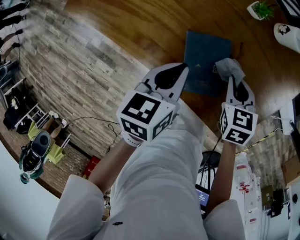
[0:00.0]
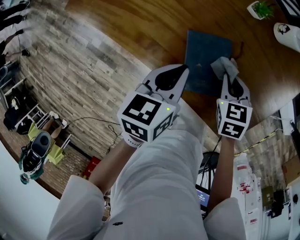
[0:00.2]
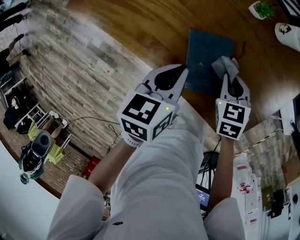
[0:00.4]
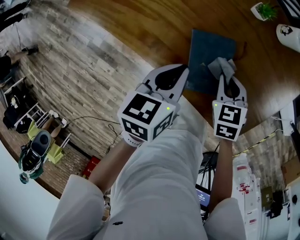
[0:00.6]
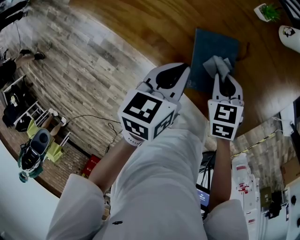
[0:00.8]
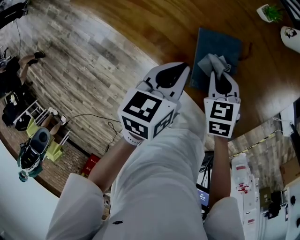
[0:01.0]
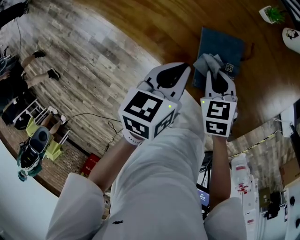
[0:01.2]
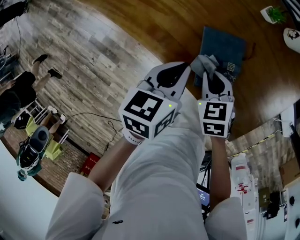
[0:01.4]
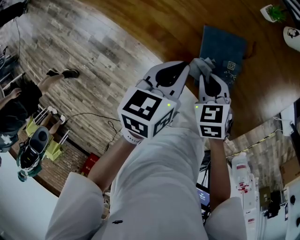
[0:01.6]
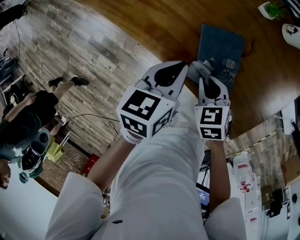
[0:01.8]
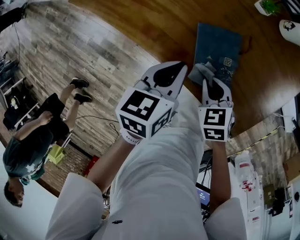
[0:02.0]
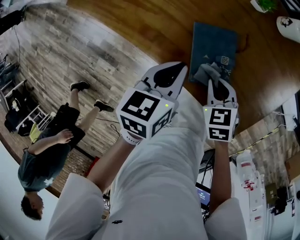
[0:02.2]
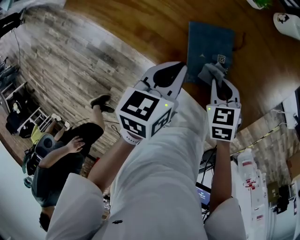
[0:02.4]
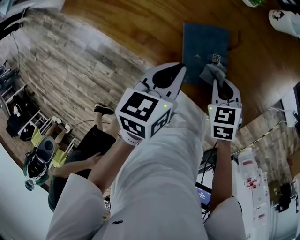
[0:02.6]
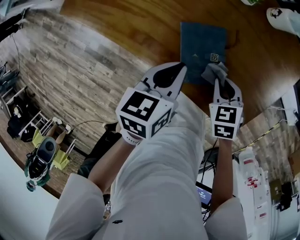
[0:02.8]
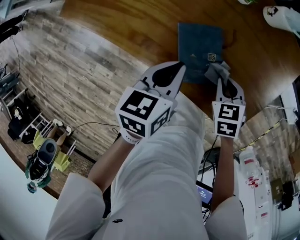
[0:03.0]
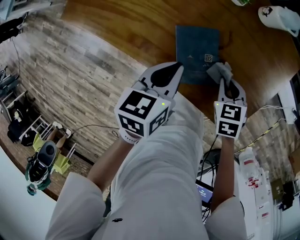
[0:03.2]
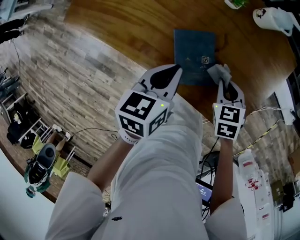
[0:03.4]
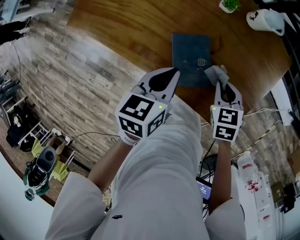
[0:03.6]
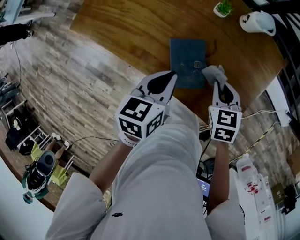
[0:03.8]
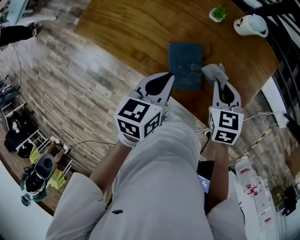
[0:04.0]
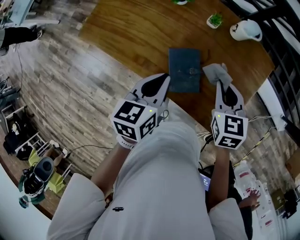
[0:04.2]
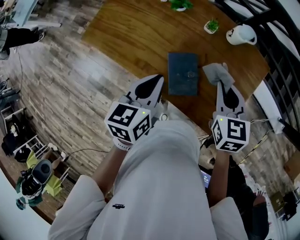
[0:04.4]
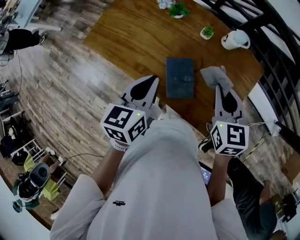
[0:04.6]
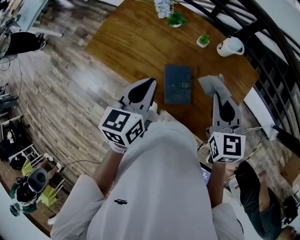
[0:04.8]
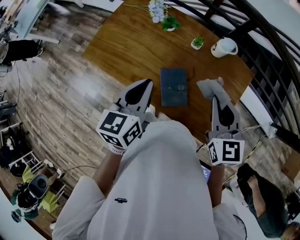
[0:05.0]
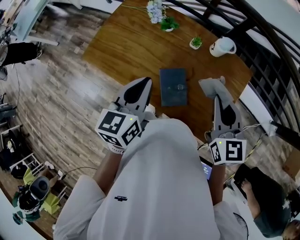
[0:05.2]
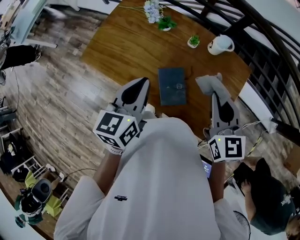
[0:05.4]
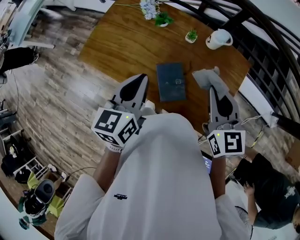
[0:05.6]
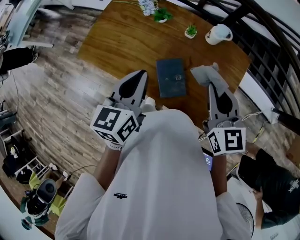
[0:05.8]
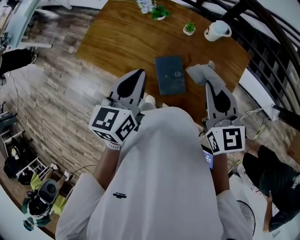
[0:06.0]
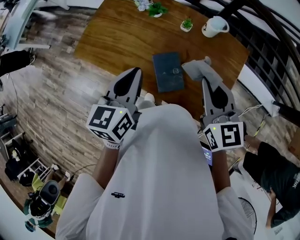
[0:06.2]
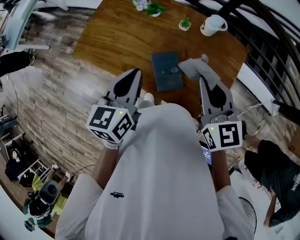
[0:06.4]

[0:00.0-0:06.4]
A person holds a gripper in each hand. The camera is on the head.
0:00.0 to 0:01.6: The left gripper changes place by about 5 cm; the right gripper shifts about 15 cm to the left and backward.
0:01.6 to 0:03.2: The left gripper heads to the right, covering roughly 5 cm, while the right gripper moves to the right, roughly 15 cm.
0:03.2 to 0:04.8: The grippers both shift upward by roughly 25 cm. The left gripper swivels approximately 20 degrees. Meanwhile the right gripper points its fingers about 40 degrees further upward.
0:04.8 to 0:06.4: The right gripper moves about 5 cm.

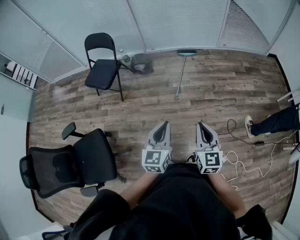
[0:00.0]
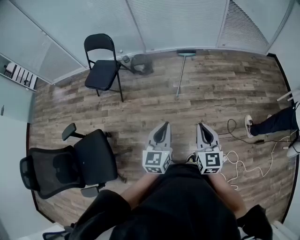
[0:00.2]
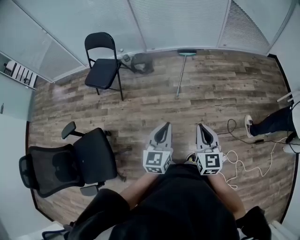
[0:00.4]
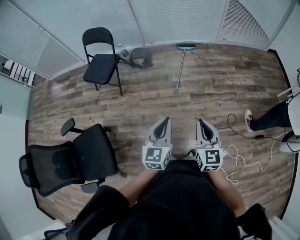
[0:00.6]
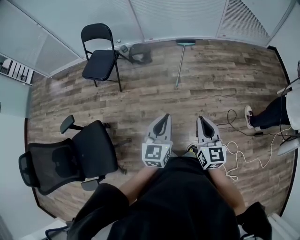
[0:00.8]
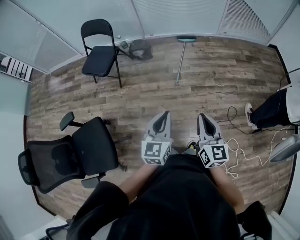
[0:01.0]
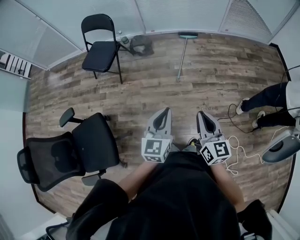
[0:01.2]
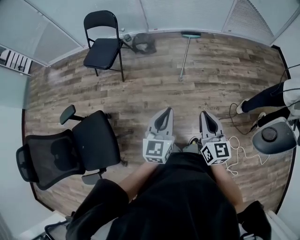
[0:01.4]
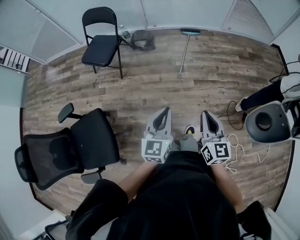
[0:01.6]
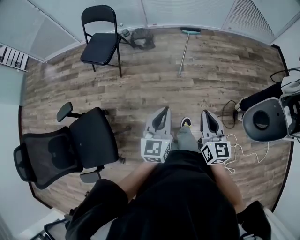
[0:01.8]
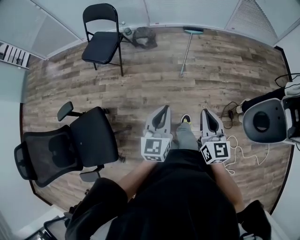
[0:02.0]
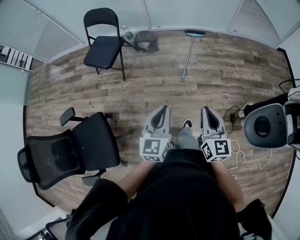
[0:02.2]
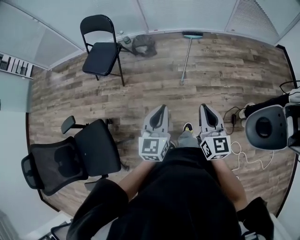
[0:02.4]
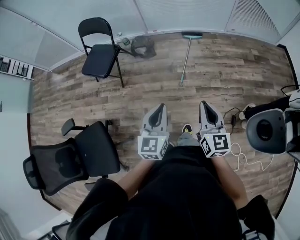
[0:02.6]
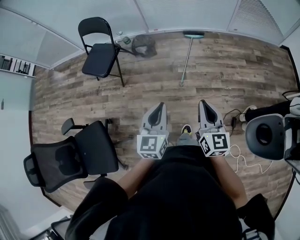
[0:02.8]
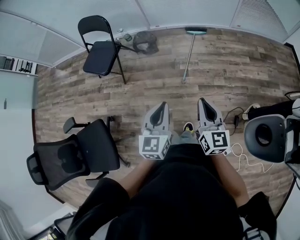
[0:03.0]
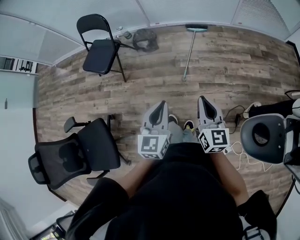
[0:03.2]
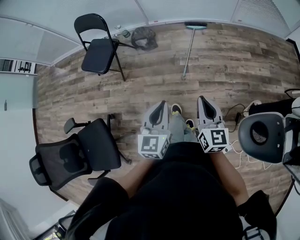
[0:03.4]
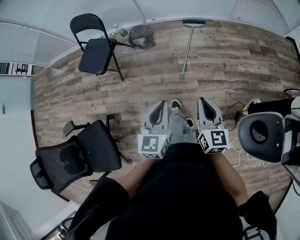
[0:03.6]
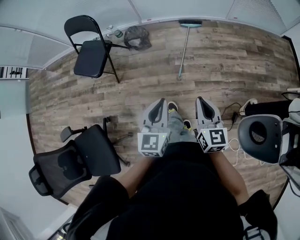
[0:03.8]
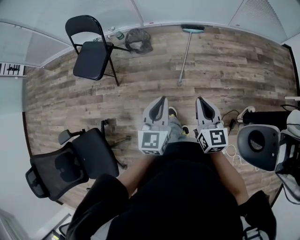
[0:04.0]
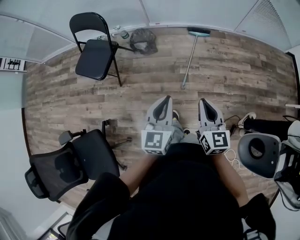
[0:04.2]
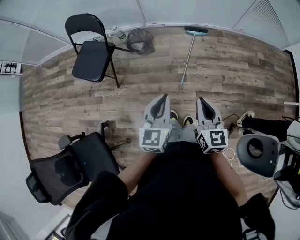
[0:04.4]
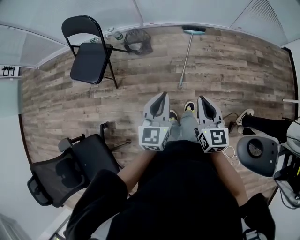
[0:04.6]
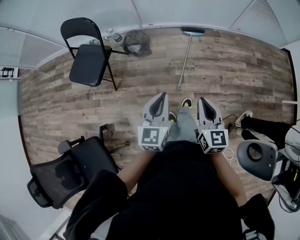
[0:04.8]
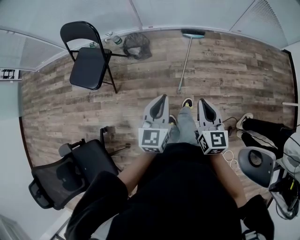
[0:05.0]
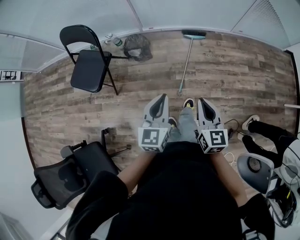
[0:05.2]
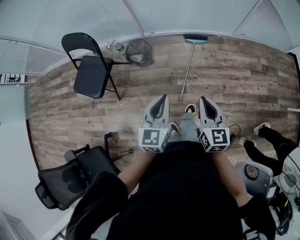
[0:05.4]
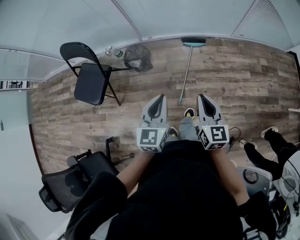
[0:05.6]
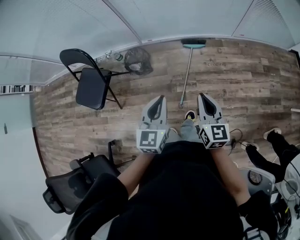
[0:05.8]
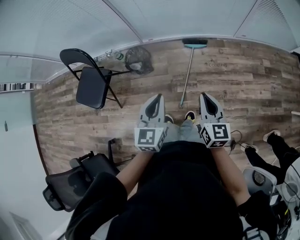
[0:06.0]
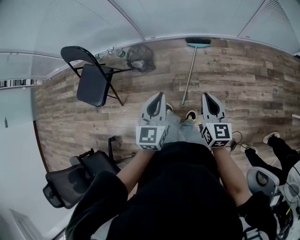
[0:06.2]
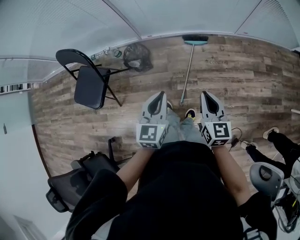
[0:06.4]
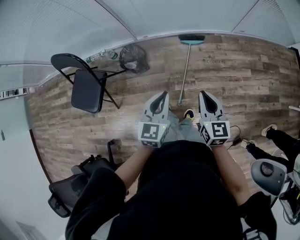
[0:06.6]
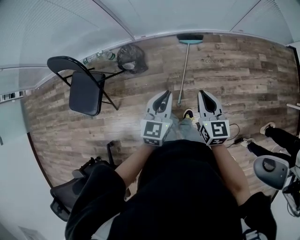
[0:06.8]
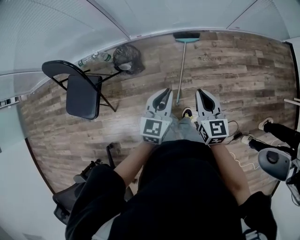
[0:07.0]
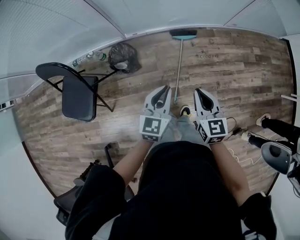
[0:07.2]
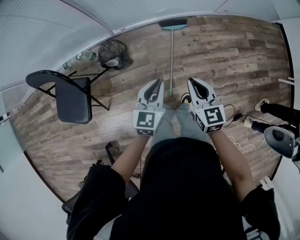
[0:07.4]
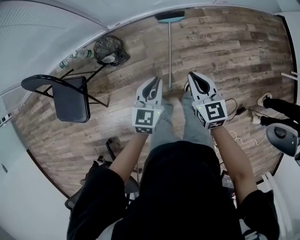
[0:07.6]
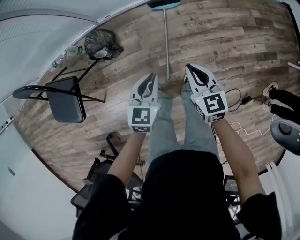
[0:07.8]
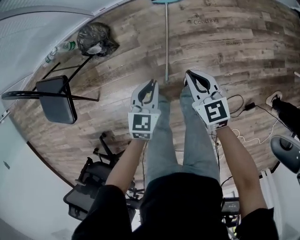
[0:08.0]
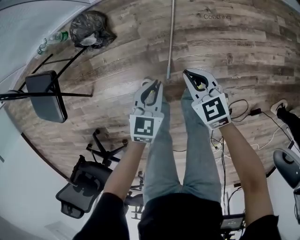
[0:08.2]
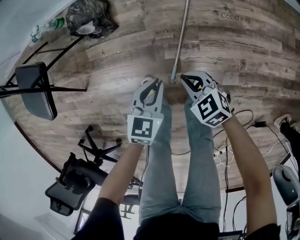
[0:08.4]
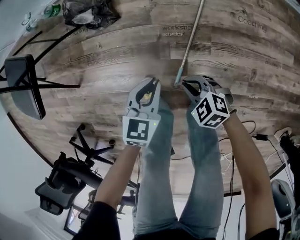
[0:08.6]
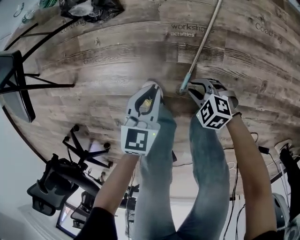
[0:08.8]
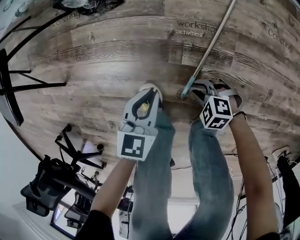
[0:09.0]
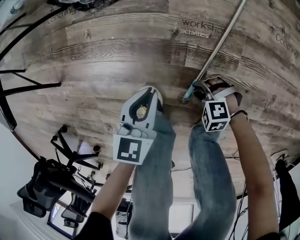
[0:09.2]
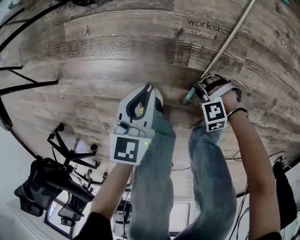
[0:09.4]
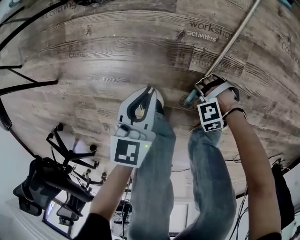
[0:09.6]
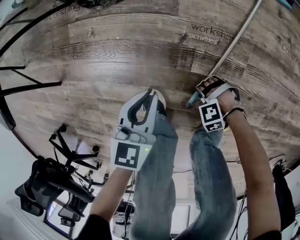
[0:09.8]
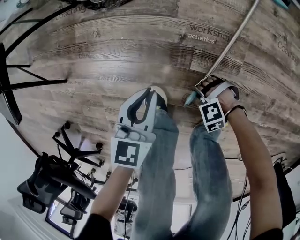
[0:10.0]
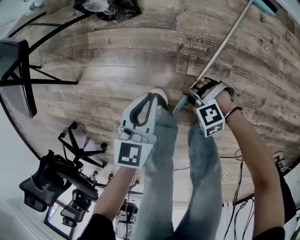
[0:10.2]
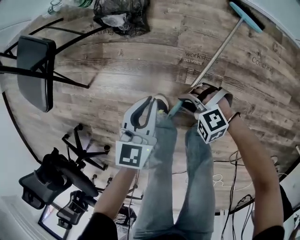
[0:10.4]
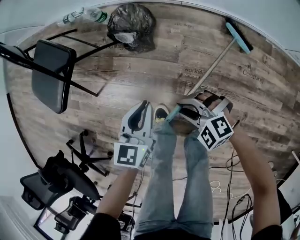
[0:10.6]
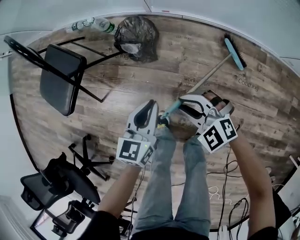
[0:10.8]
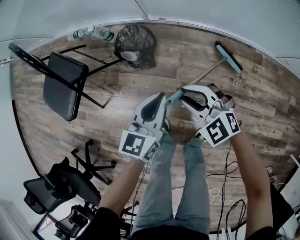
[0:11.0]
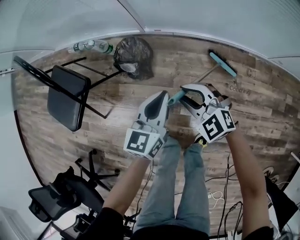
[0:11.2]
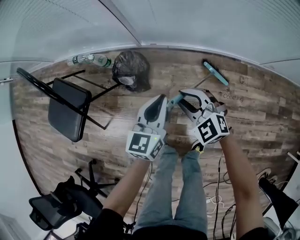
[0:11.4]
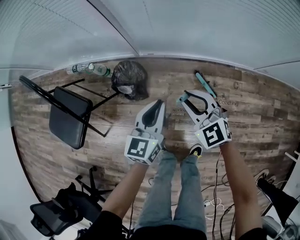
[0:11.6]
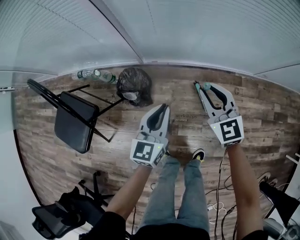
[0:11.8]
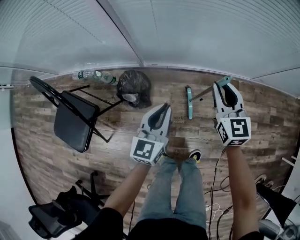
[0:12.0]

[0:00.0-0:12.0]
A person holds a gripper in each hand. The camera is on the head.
0:00.0 to 0:01.6: Both grippers move to the left, roughly 10 cm.
0:01.6 to 0:03.0: Both grippers travel together forward and to the right, some 20 cm.
0:03.0 to 0:04.4: The left gripper is displaced forward by roughly 20 cm. Meanwhile the right gripper moves forward and to the left, about 20 cm.
0:04.4 to 0:06.0: The two grippers go roughly 25 cm forward and to the right.
0:06.0 to 0:07.6: The left gripper moves forward and downward, approximately 20 cm, and changes its angle by about 20 degrees, while the right gripper travels forward, downward and to the left by about 20 cm.
0:07.6 to 0:09.0: The two grippers go roughly 70 cm downward. The right gripper tilts its fingers roughly 30 degrees downward, and opens up. Meanwhile the left gripper turns by about 20 degrees.
0:09.0 to 0:10.4: The two grippers go approximately 20 cm upward. The right gripper rotates about 30 degrees.
0:10.4 to 0:12.0: The grippers both shift upward by approximately 40 cm. The right gripper tilts its fingers approximately 30 degrees upward; the left gripper turns by approximately 30 degrees.

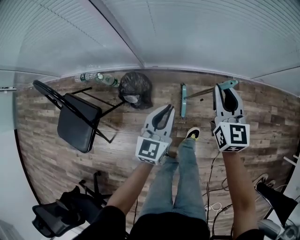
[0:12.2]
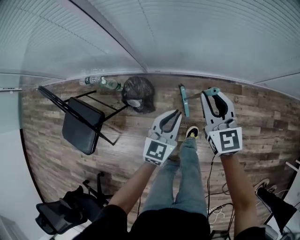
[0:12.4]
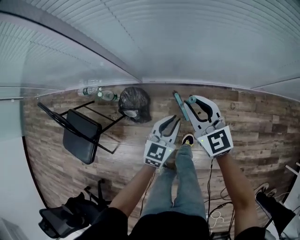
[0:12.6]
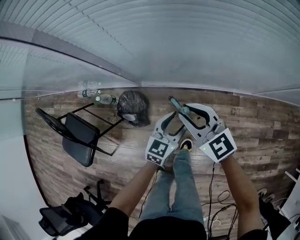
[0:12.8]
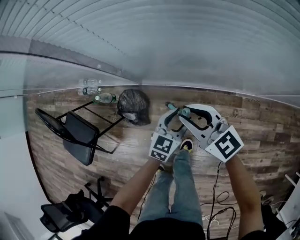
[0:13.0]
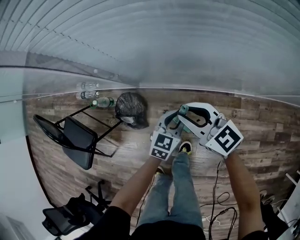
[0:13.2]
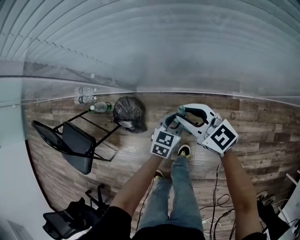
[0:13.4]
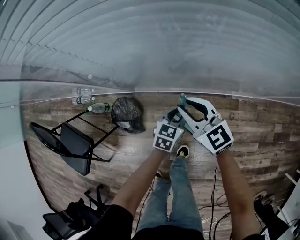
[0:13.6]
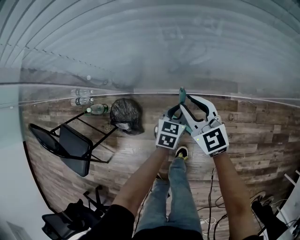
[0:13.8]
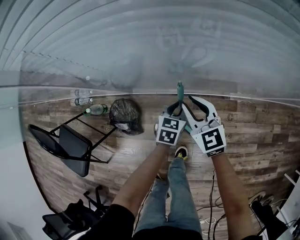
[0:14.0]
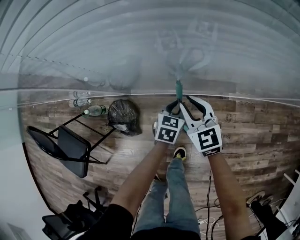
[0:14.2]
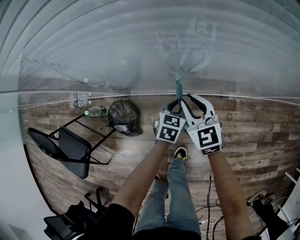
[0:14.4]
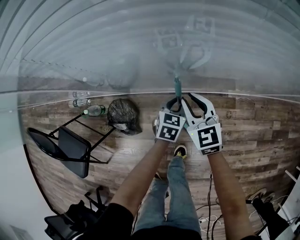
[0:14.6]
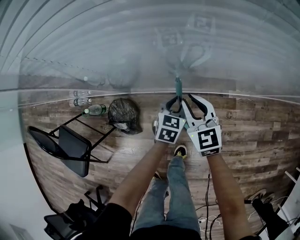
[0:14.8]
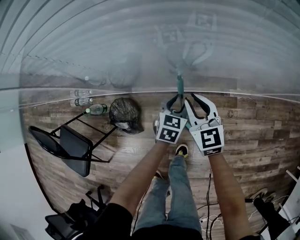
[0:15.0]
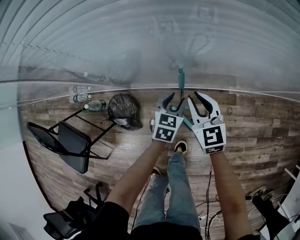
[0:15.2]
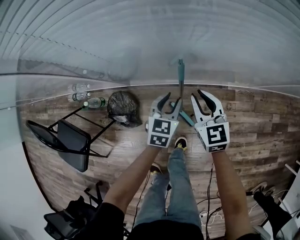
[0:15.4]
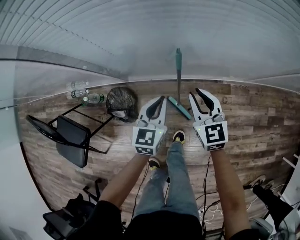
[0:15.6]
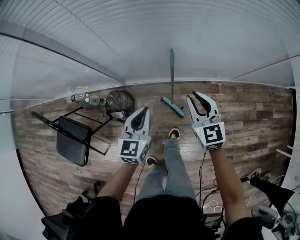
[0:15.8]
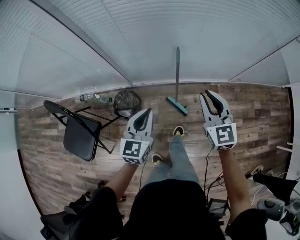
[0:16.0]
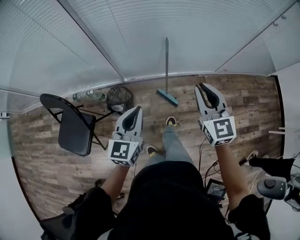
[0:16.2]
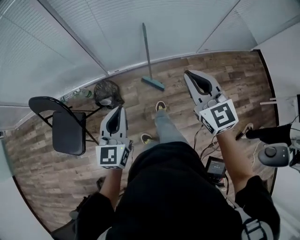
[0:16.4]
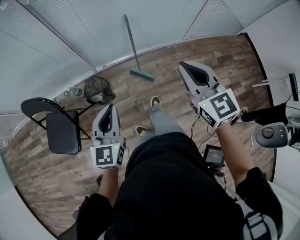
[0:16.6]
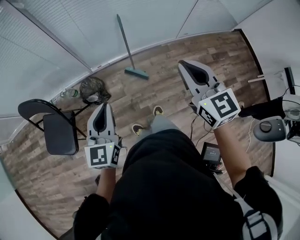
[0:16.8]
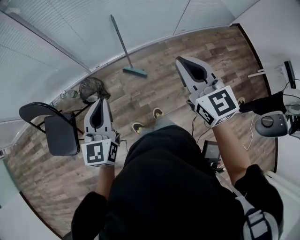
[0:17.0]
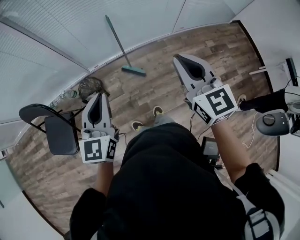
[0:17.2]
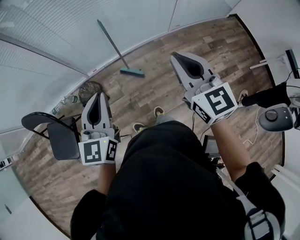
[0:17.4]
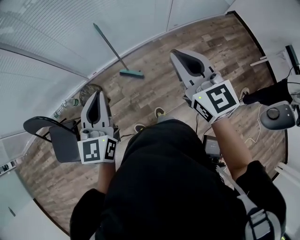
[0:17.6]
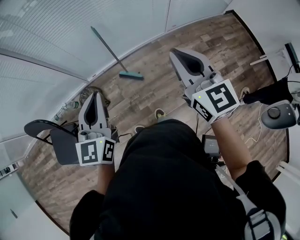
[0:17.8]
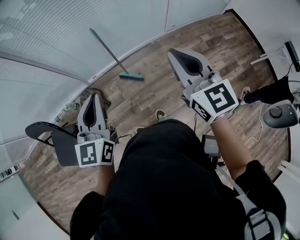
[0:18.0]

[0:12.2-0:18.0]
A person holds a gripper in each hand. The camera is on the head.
0:12.2 to 0:13.6: The right gripper goes roughly 20 cm forward and downward, and swivels roughly 40 degrees. Meanwhile the left gripper shifts roughly 35 cm forward, to the right and downward, swivels about 30 degrees, and opens, then closes once more.
0:13.6 to 0:15.0: The right gripper shifts some 5 cm to the right, and swivels about 20 degrees.
0:15.0 to 0:16.6: The two grippers travel together, backward, some 50 cm. Both grippers travel together upward, approximately 40 cm. The left gripper points its fingers approximately 30 degrees further upward, and closes its fingers.
0:16.6 to 0:18.0: The left gripper shifts approximately 15 cm to the right and upward, while the right gripper travels to the right by roughly 15 cm.
